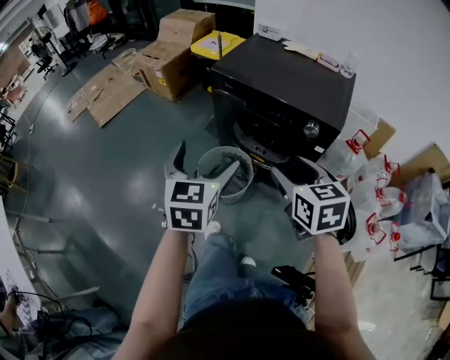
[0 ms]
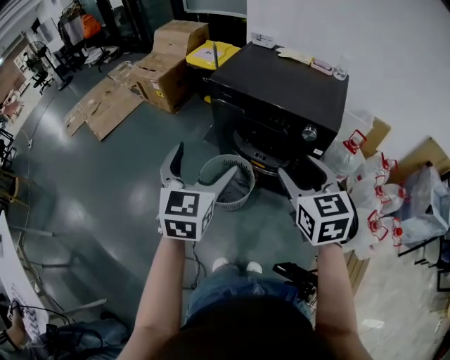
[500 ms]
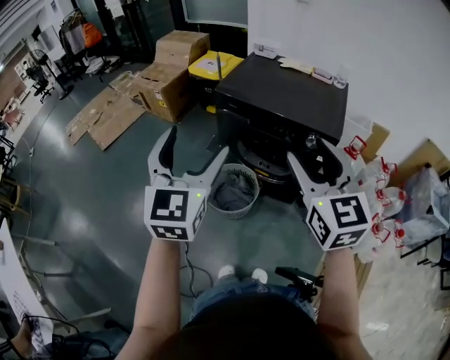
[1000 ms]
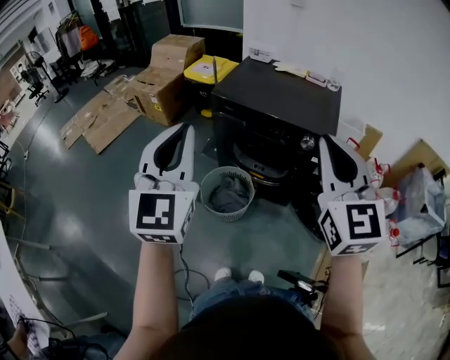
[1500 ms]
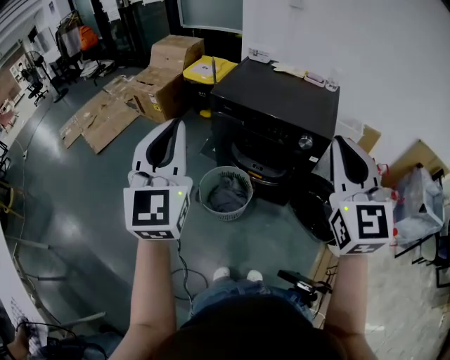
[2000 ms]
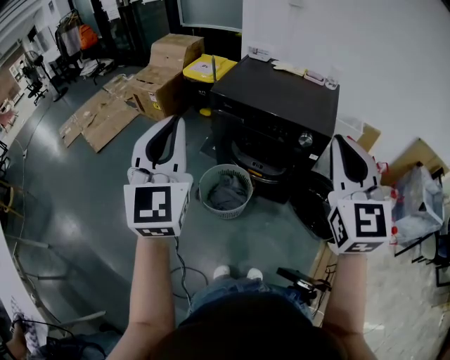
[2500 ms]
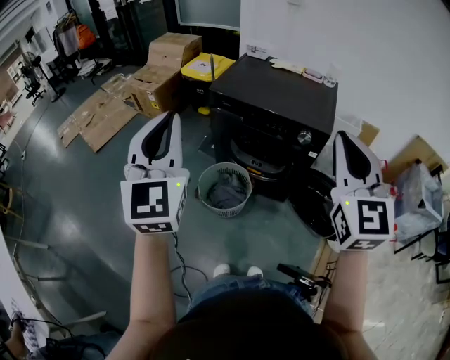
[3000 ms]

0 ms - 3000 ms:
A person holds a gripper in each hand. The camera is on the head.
0 ms - 1500 ms: The grippers both shift upward by about 20 cm. The left gripper swivels some 30 degrees, and closes, while the right gripper points its fingers some 30 degrees further upward, and closes.
1500 ms - 3000 ms: The grippers make only small movements.

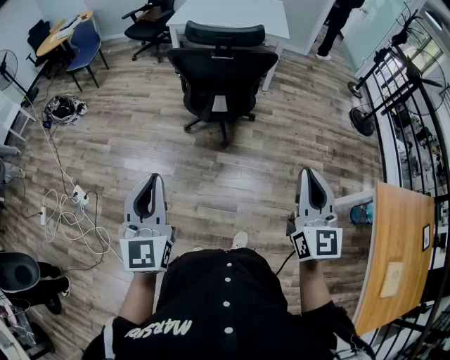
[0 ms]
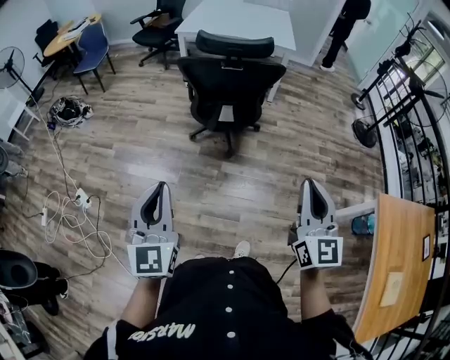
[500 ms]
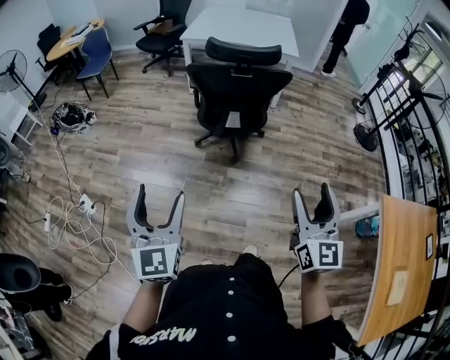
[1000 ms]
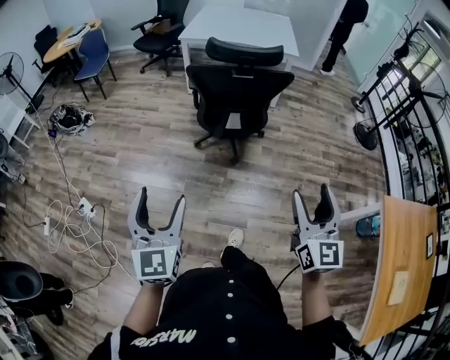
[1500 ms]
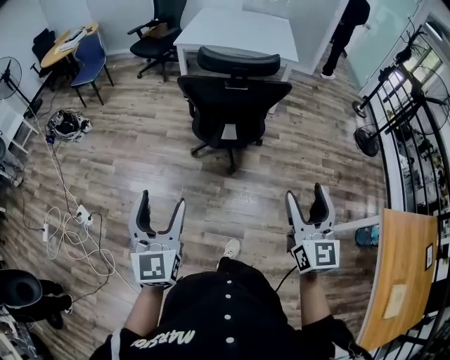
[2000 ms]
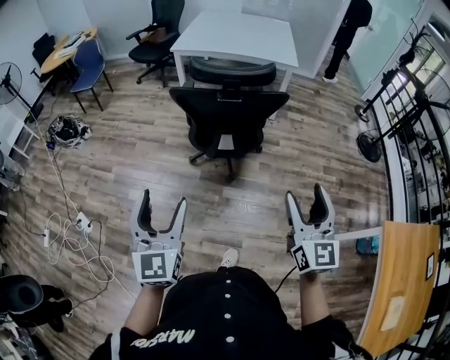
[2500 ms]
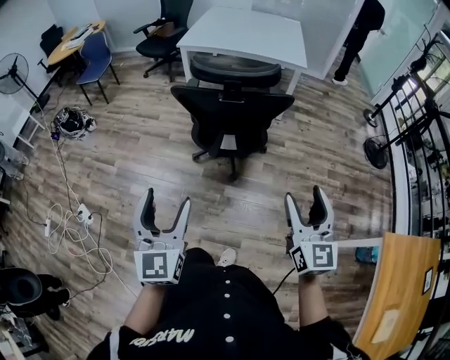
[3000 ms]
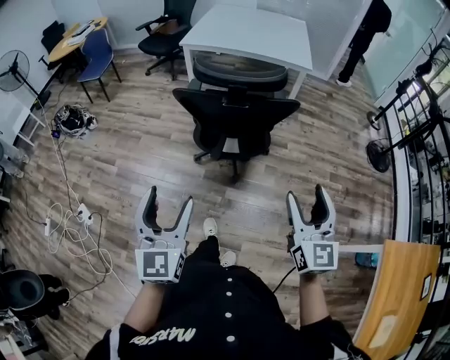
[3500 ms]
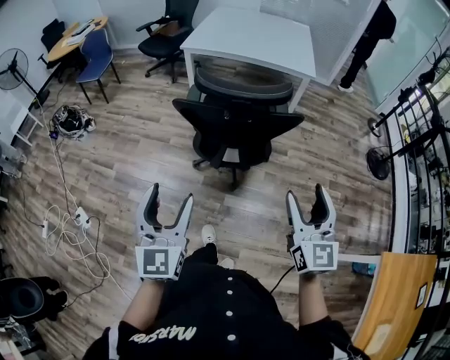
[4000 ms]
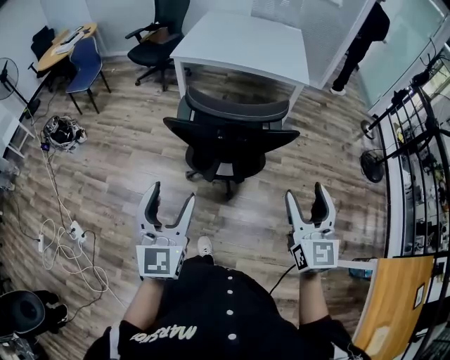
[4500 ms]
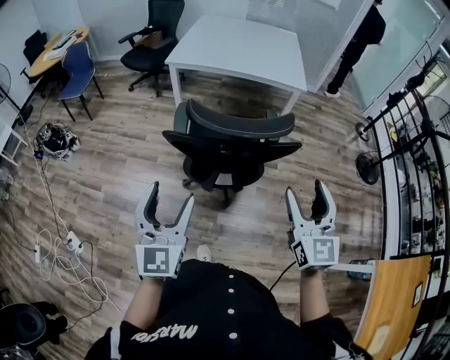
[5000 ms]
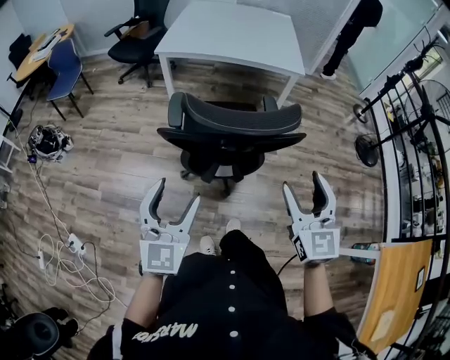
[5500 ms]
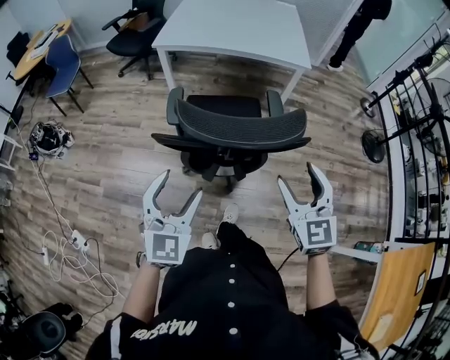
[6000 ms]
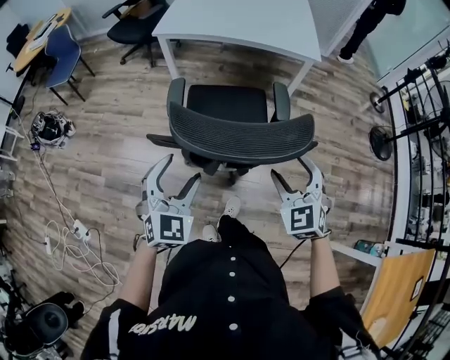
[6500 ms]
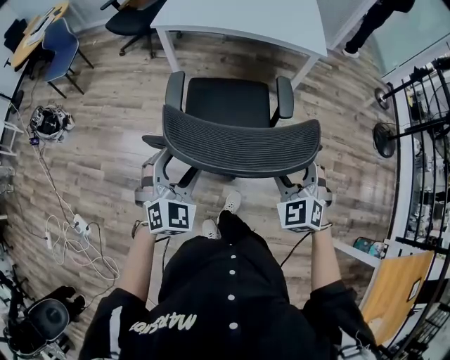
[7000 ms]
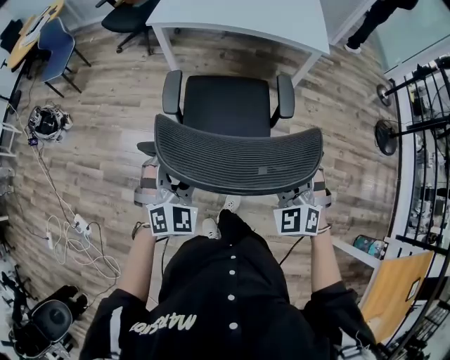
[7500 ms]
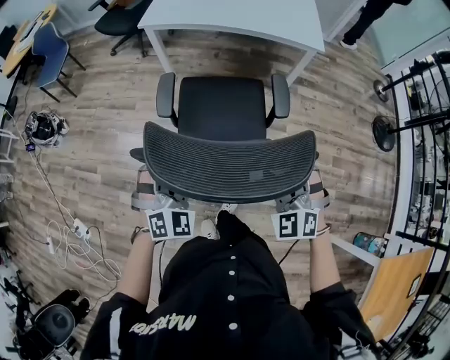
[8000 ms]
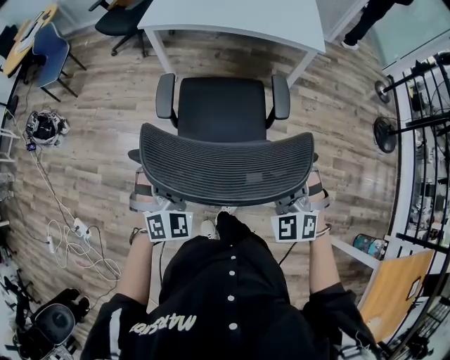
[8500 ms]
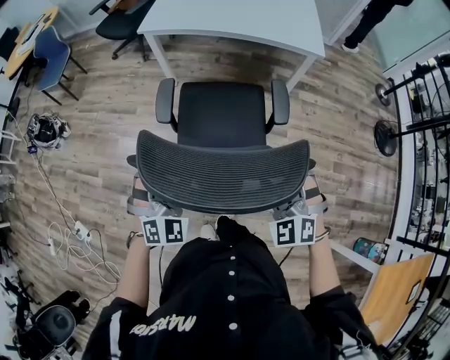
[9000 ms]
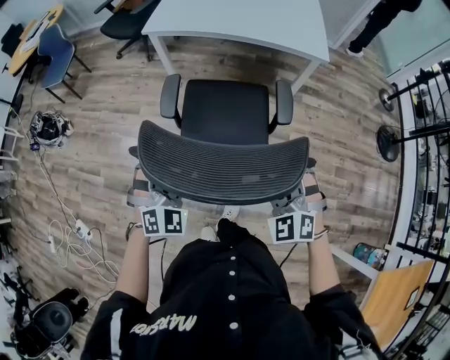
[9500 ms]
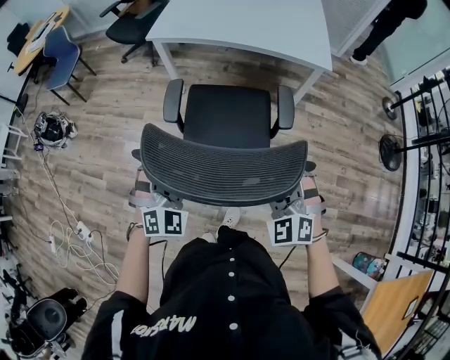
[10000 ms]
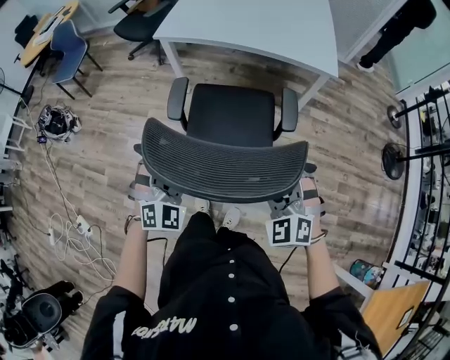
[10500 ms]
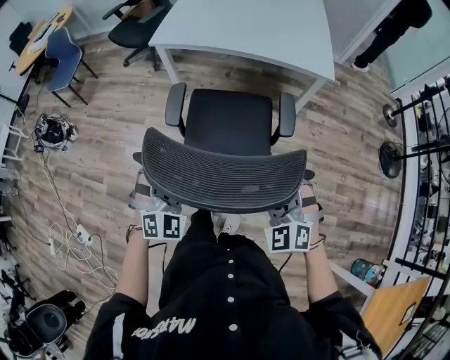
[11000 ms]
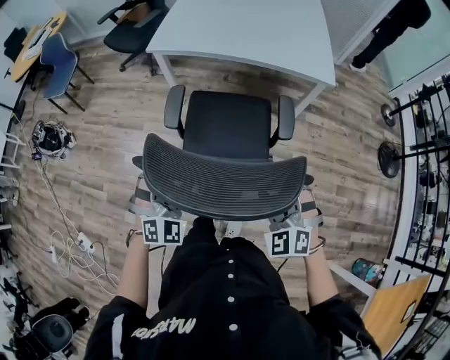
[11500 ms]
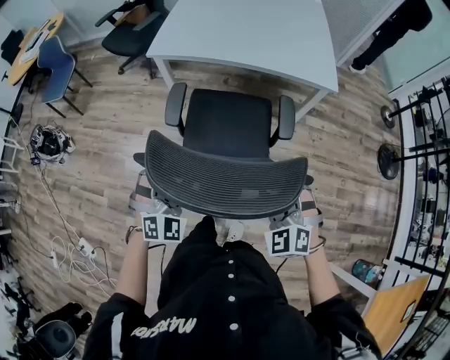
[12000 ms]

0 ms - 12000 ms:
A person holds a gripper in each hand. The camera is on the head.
0 ms - 2000 ms: Both grippers travel together forward, approximately 10 cm. The right gripper opens its fingers, while the left gripper opens.
2000 ms - 4000 ms: Both grippers travel together forward, about 15 cm.
4000 ms - 6000 ms: Both grippers travel together forward, some 20 cm. The left gripper swivels about 20 degrees.
6000 ms - 8000 ms: The left gripper goes approximately 15 cm forward and downward, and changes its angle by some 40 degrees. The right gripper heads downward and forward, covering about 15 cm, and turns by some 40 degrees.
8000 ms - 10000 ms: The grippers both shift forward by approximately 5 cm.
10000 ms - 12000 ms: Both grippers travel together forward, about 10 cm.

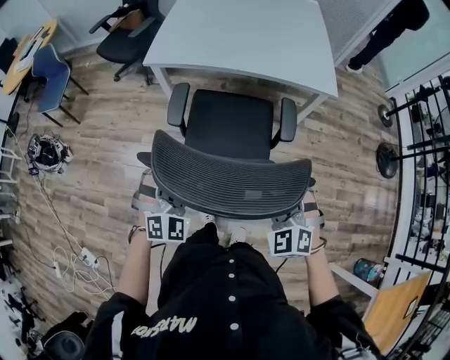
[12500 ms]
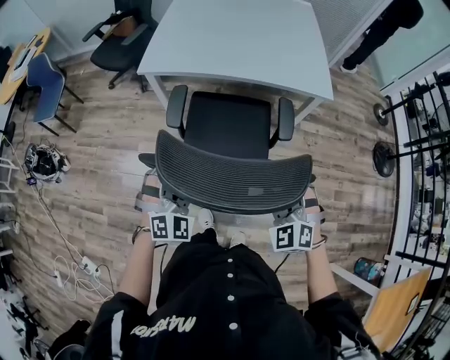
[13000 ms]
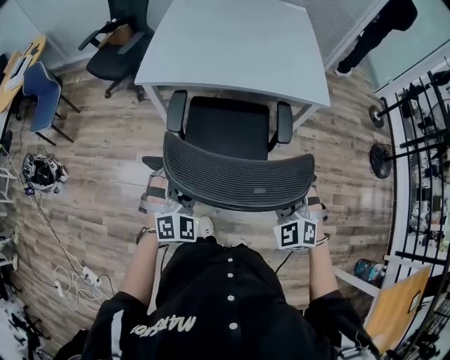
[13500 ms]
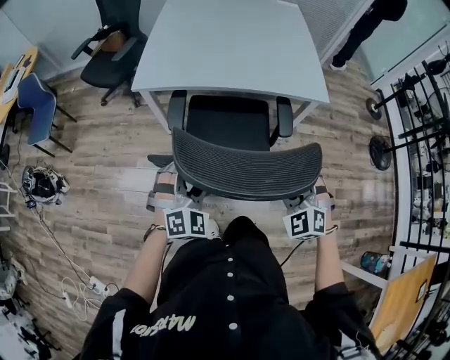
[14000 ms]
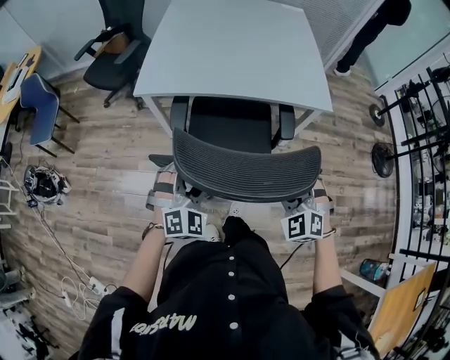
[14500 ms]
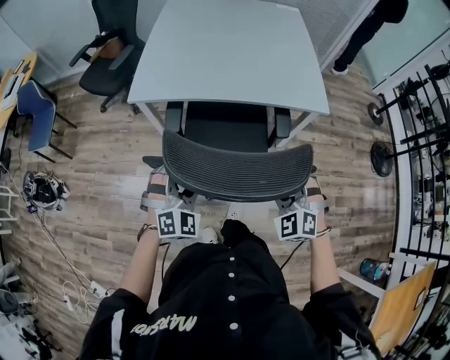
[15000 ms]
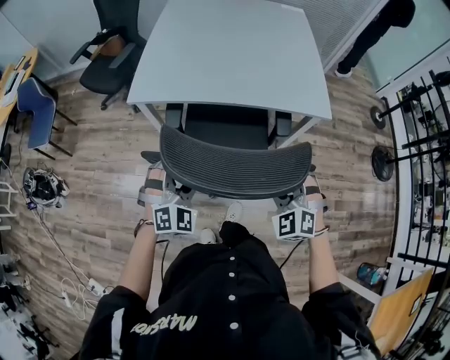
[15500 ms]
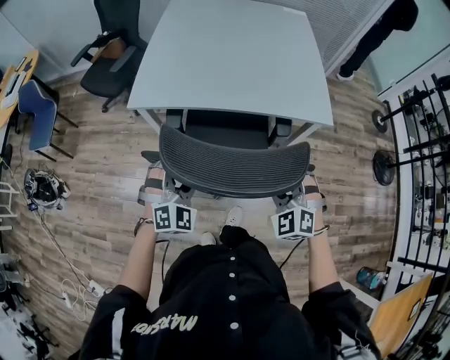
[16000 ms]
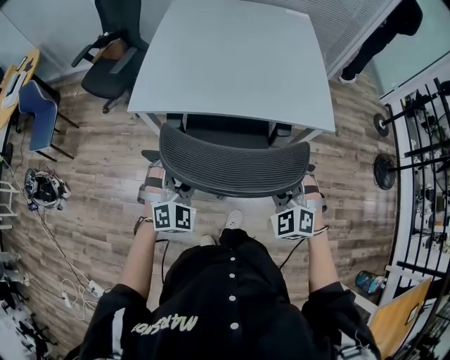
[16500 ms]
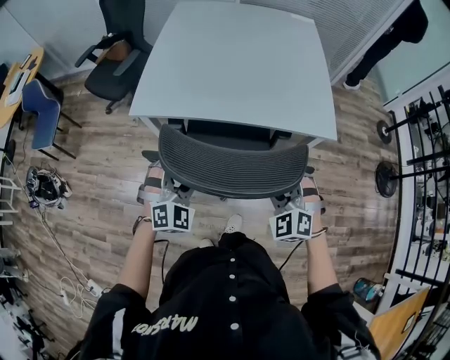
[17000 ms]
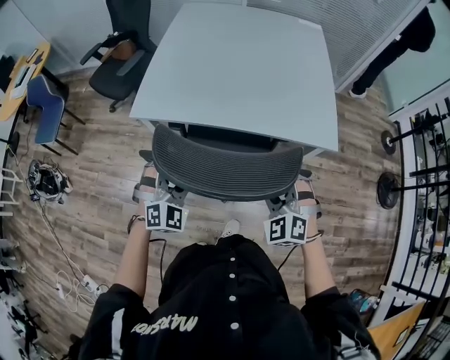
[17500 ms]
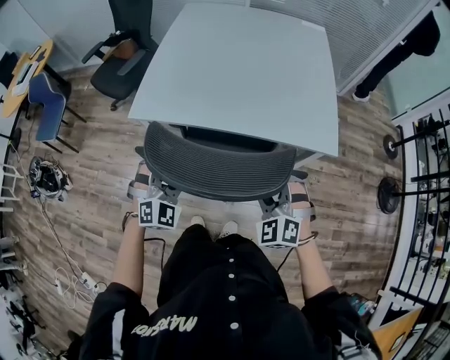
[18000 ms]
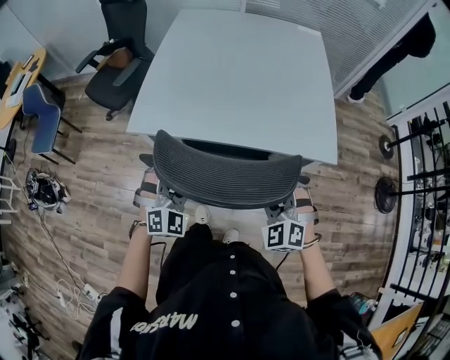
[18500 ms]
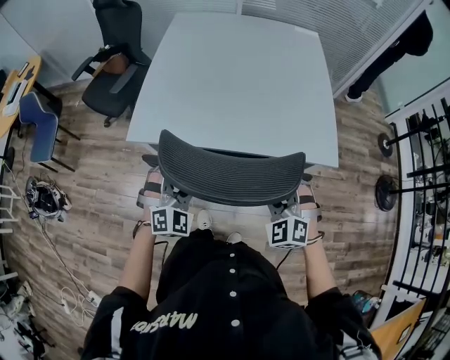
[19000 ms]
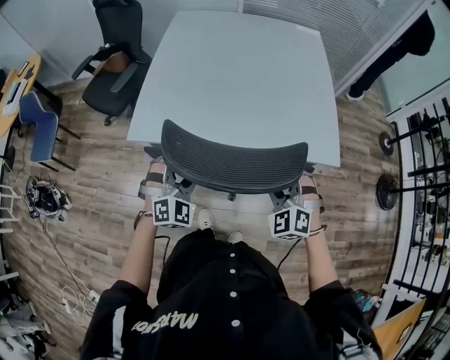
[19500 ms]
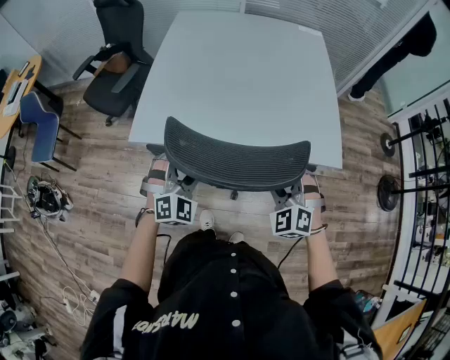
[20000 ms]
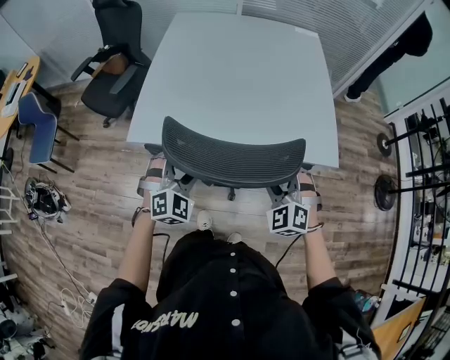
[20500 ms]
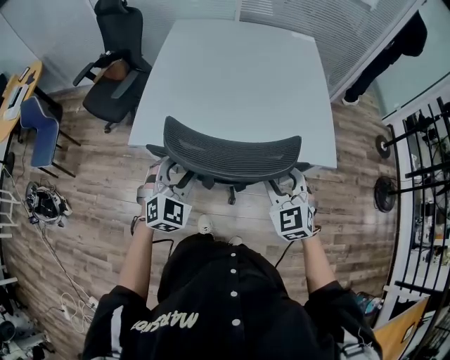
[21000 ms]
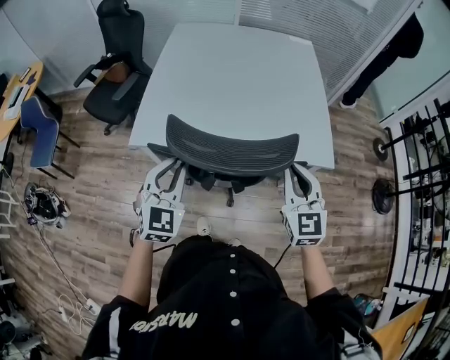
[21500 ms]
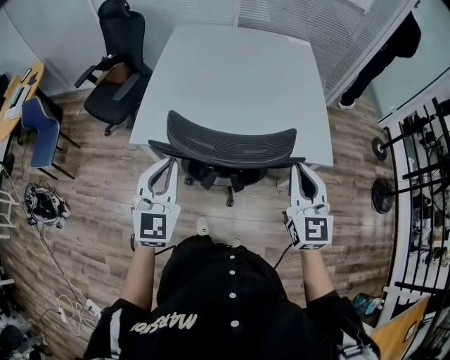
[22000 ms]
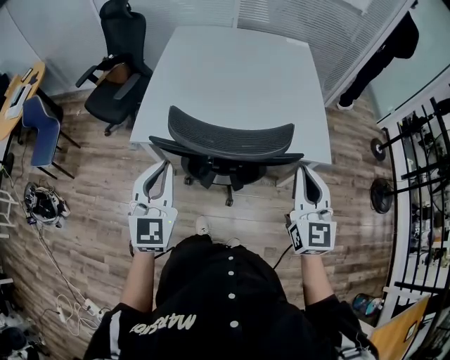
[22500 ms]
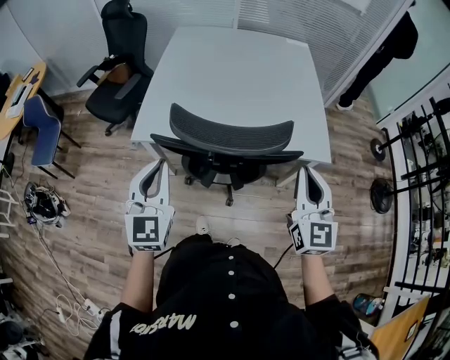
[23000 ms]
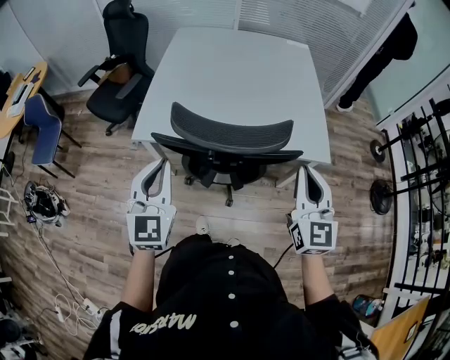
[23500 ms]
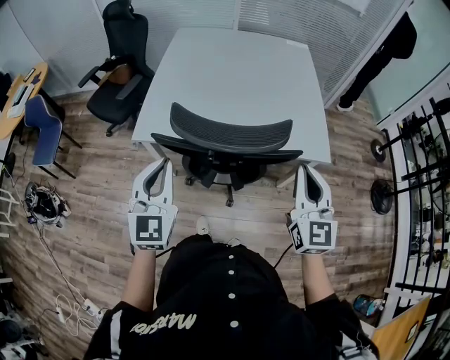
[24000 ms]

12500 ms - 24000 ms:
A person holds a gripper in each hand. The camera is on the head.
12500 ms - 14500 ms: Both grippers travel together forward, roughly 10 cm.
14500 ms - 16500 ms: The grippers both shift forward by some 10 cm.
16500 ms - 18500 ms: Both grippers travel together forward, some 10 cm.
18500 ms - 20000 ms: Both grippers travel together forward, approximately 5 cm.
20000 ms - 22000 ms: The right gripper is displaced upward by approximately 15 cm, rotates around the line of its fingers by some 50 degrees, clockwise from behind, and closes; the left gripper travels upward and backward by some 15 cm, rotates roughly 40 degrees, and closes.
22000 ms - 24000 ms: The grippers move only a little.
